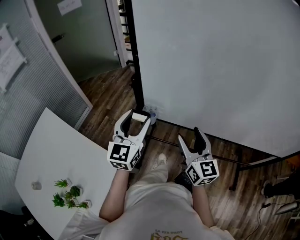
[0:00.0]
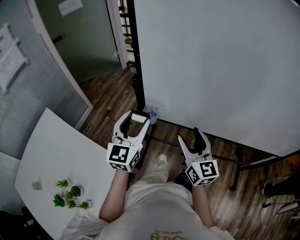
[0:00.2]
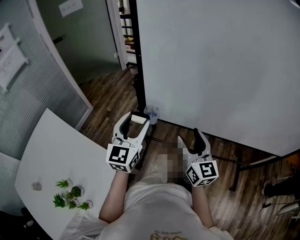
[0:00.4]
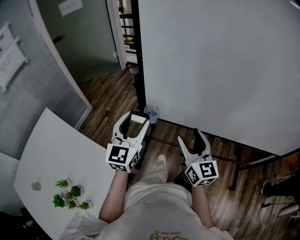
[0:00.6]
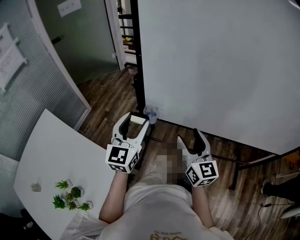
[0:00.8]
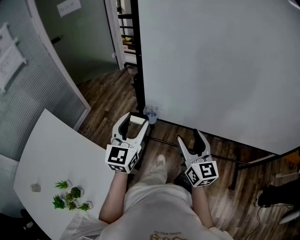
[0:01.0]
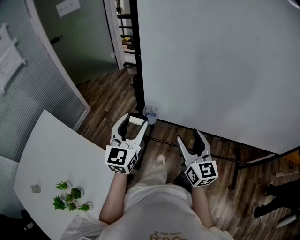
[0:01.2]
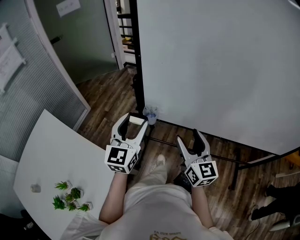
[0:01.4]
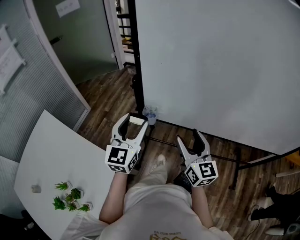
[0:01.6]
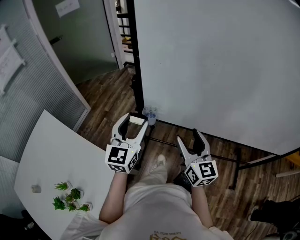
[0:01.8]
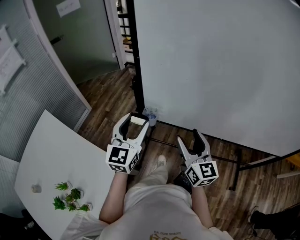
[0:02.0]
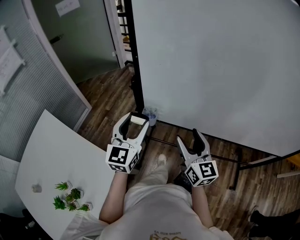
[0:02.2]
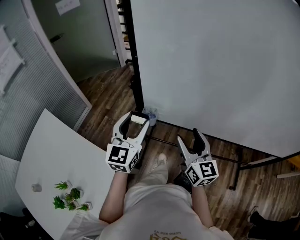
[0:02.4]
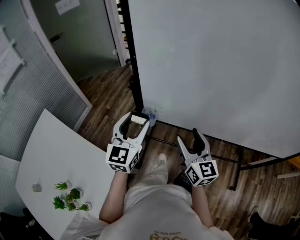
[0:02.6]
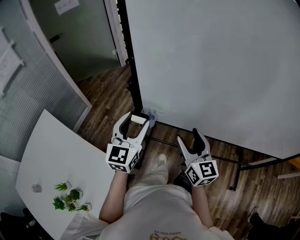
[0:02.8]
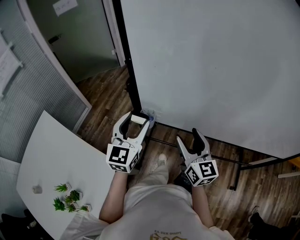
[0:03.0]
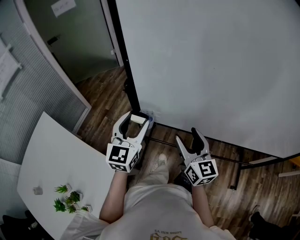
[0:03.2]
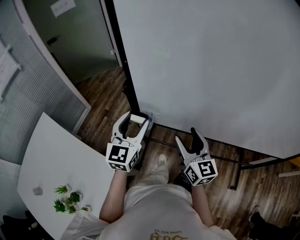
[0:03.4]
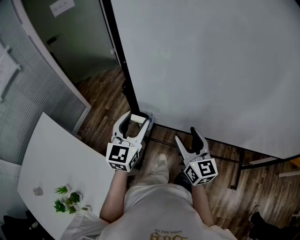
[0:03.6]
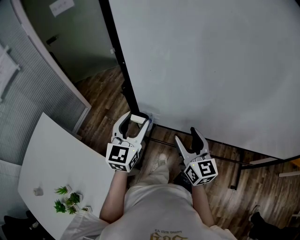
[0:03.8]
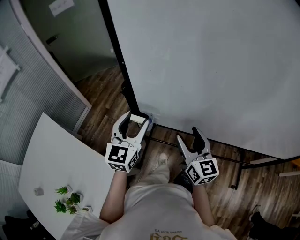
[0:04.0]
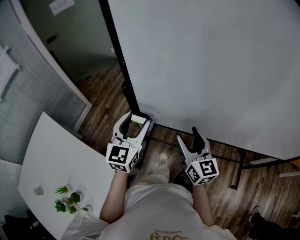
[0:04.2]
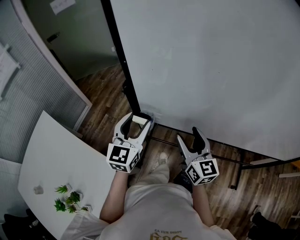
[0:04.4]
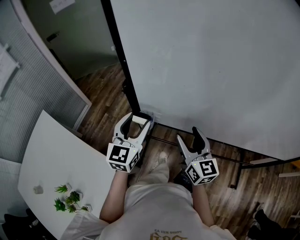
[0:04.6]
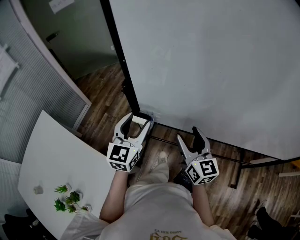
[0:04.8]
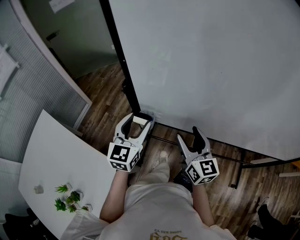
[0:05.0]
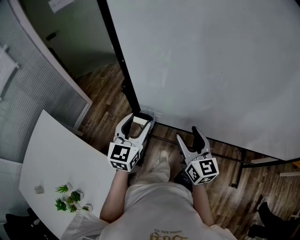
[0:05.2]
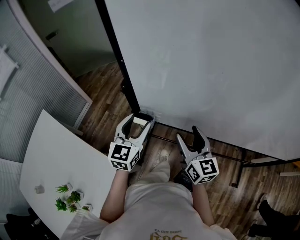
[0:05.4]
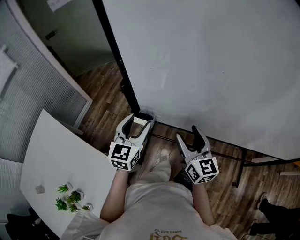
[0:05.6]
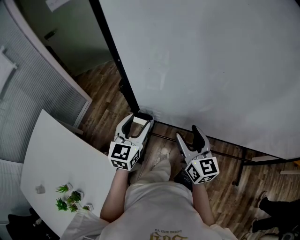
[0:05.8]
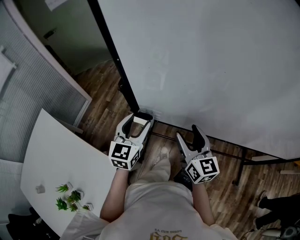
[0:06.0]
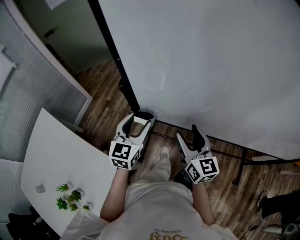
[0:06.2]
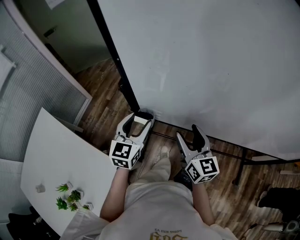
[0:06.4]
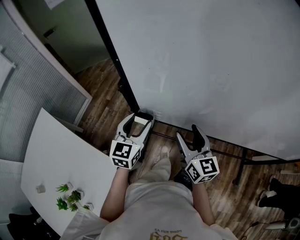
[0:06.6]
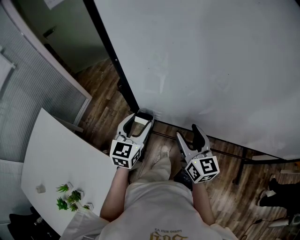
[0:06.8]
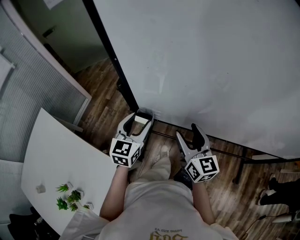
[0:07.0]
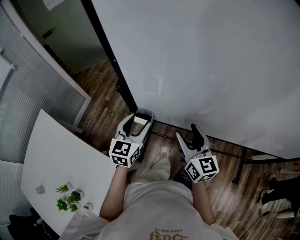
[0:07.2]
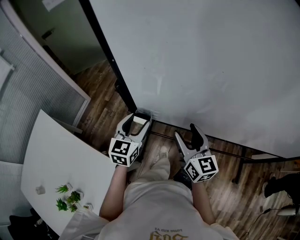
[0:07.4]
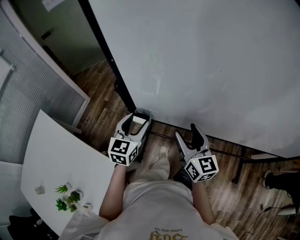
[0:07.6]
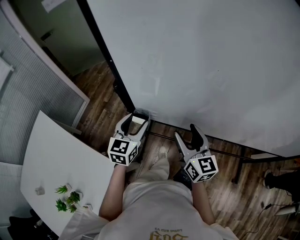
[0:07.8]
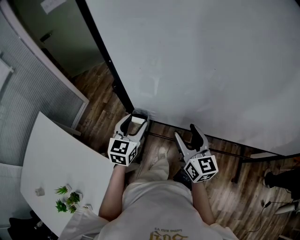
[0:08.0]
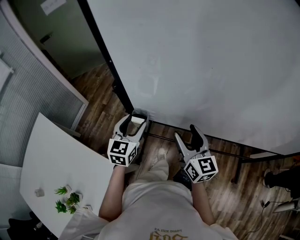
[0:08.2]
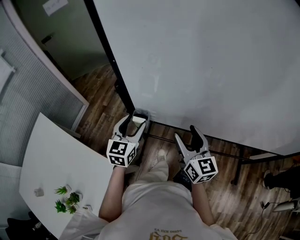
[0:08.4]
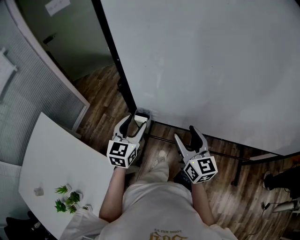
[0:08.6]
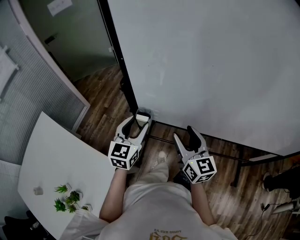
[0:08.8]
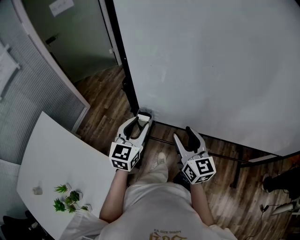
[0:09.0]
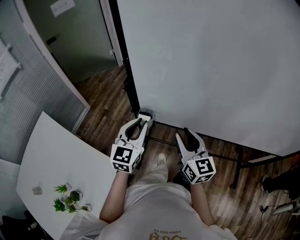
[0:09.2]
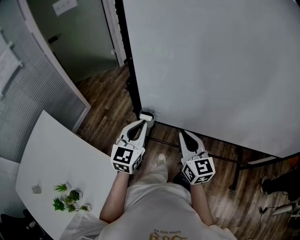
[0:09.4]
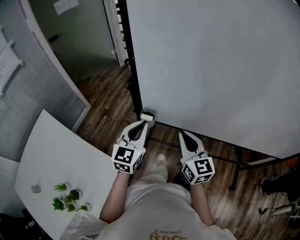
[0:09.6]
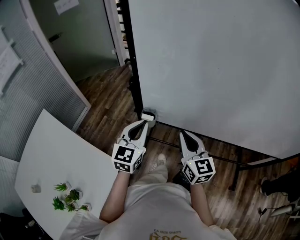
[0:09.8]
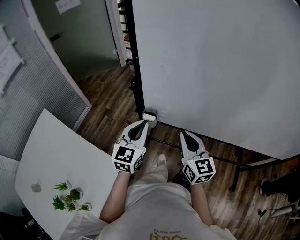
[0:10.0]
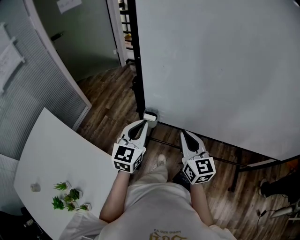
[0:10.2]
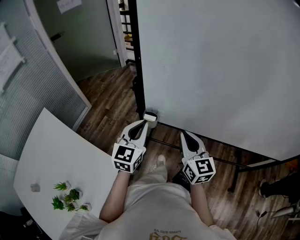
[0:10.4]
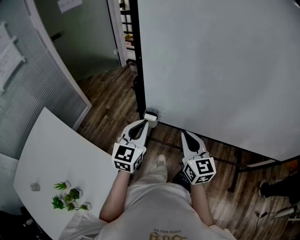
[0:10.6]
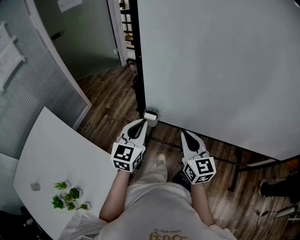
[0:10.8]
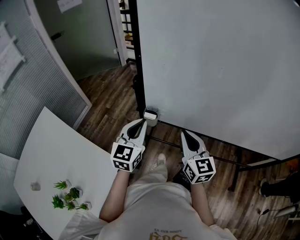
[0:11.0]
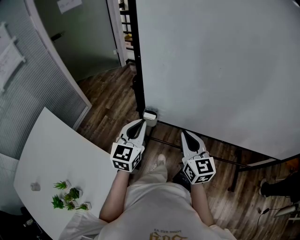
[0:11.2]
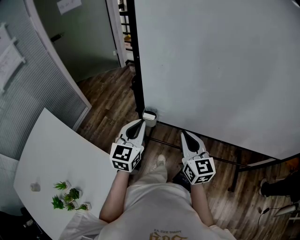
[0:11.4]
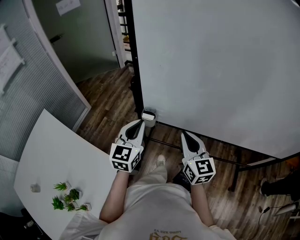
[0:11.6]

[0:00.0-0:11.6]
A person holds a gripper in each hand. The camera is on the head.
0:00.0 to 0:02.8: The grippers move only a little.
0:02.8 to 0:04.4: The grippers move only a little.
0:04.4 to 0:05.8: The left gripper changes place by roughly 5 cm.
0:05.8 to 0:08.8: The grippers stay close to where they were, moving slightly.
0:08.8 to 0:10.2: The left gripper closes. Meanwhile the right gripper closes up.
0:10.2 to 0:11.6: Neither gripper changes place.

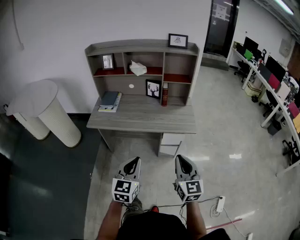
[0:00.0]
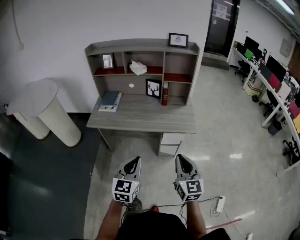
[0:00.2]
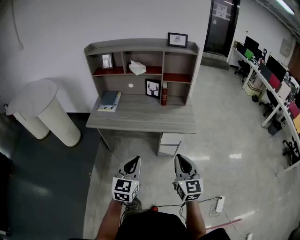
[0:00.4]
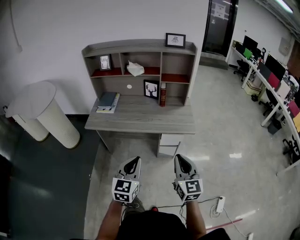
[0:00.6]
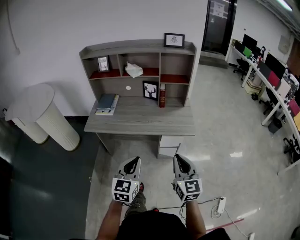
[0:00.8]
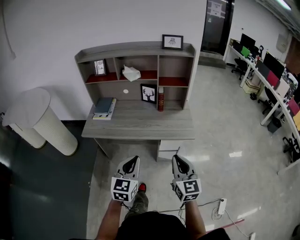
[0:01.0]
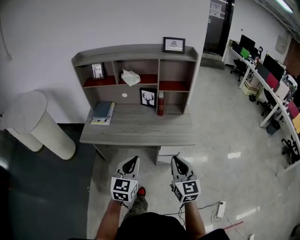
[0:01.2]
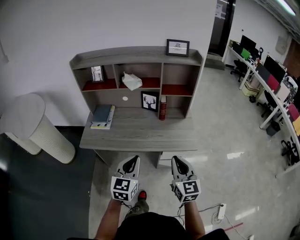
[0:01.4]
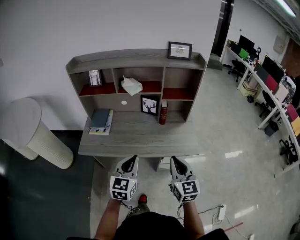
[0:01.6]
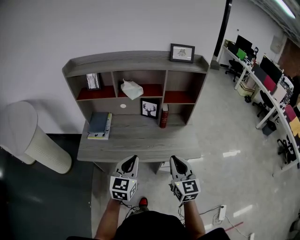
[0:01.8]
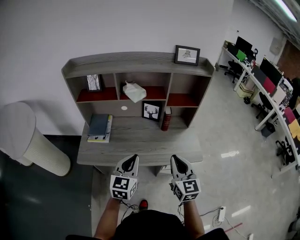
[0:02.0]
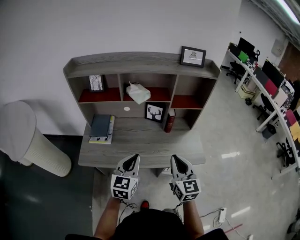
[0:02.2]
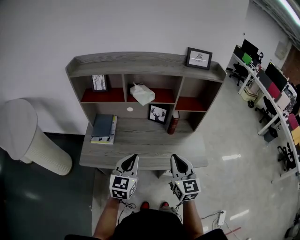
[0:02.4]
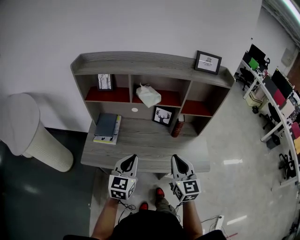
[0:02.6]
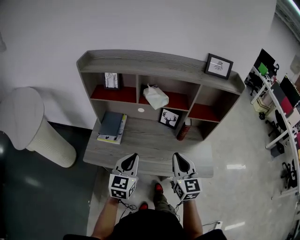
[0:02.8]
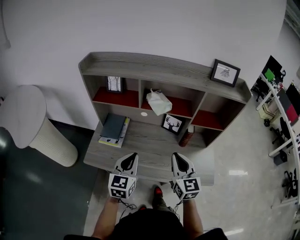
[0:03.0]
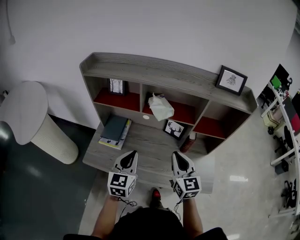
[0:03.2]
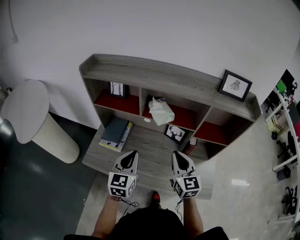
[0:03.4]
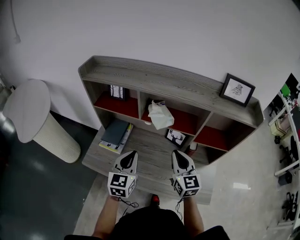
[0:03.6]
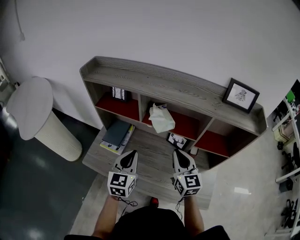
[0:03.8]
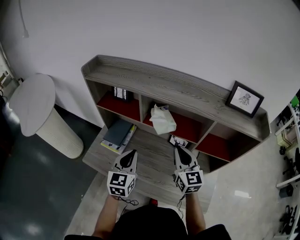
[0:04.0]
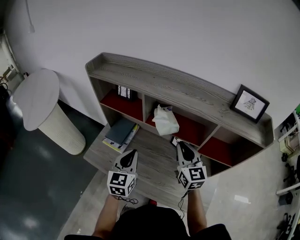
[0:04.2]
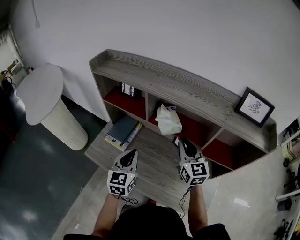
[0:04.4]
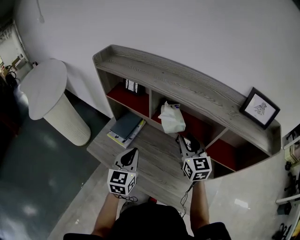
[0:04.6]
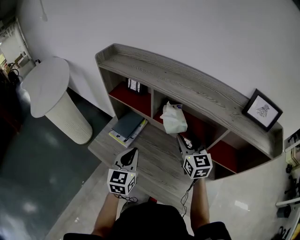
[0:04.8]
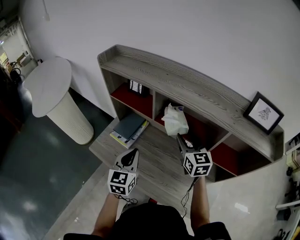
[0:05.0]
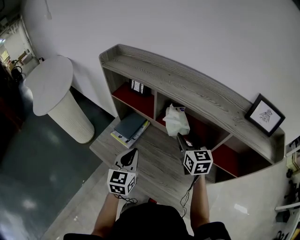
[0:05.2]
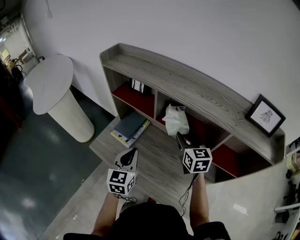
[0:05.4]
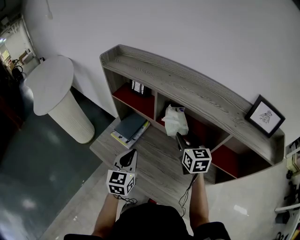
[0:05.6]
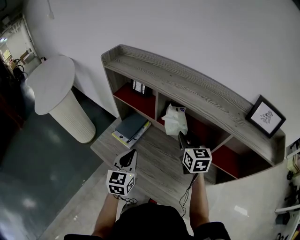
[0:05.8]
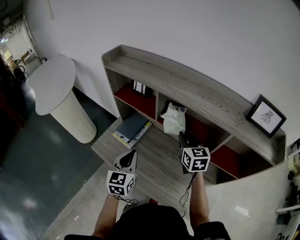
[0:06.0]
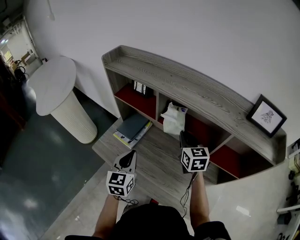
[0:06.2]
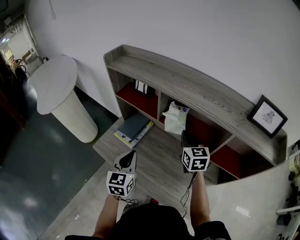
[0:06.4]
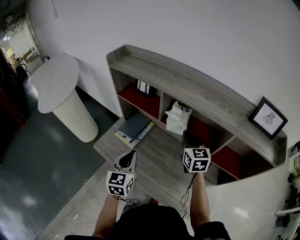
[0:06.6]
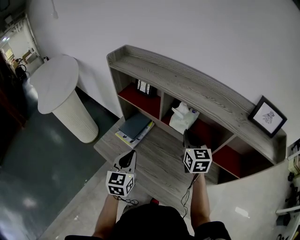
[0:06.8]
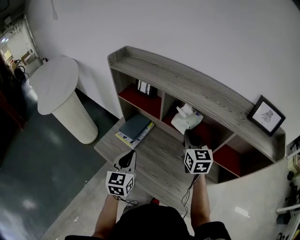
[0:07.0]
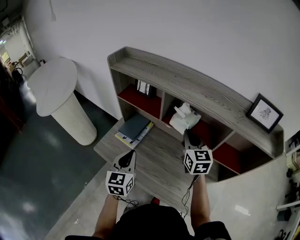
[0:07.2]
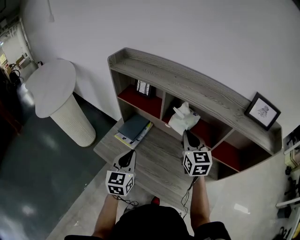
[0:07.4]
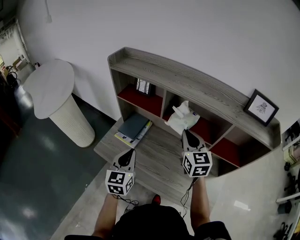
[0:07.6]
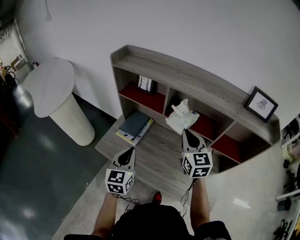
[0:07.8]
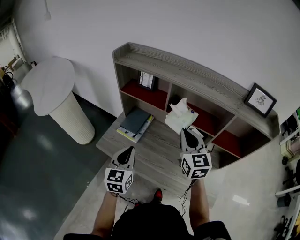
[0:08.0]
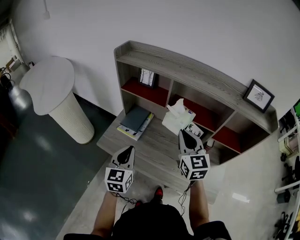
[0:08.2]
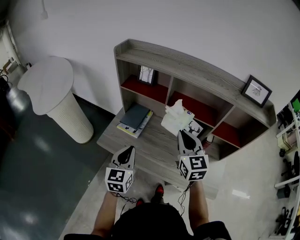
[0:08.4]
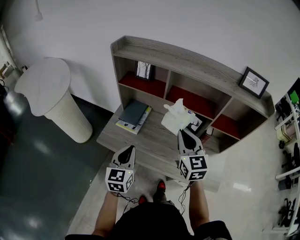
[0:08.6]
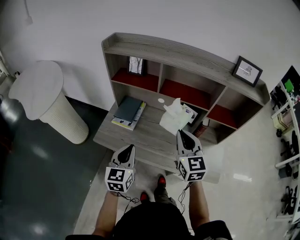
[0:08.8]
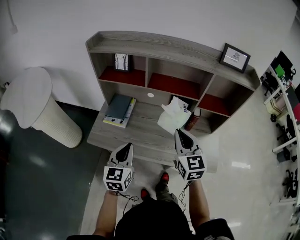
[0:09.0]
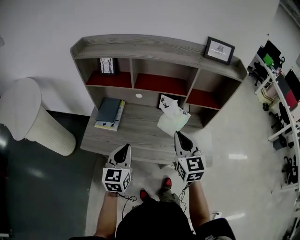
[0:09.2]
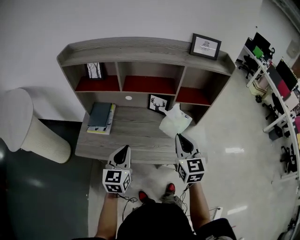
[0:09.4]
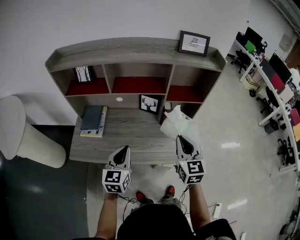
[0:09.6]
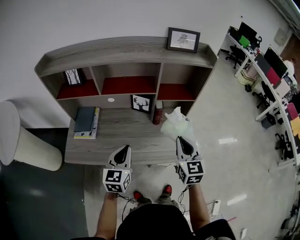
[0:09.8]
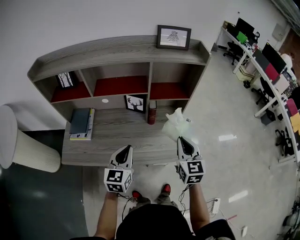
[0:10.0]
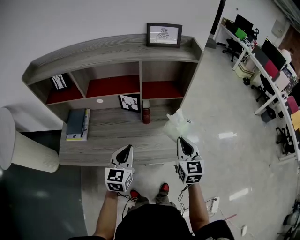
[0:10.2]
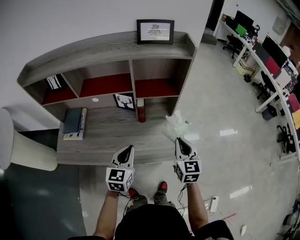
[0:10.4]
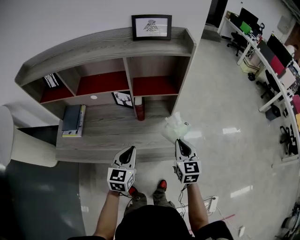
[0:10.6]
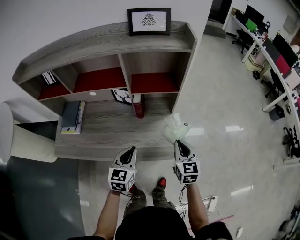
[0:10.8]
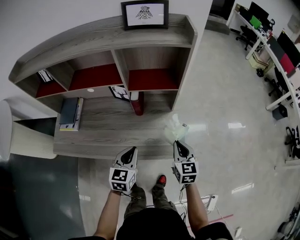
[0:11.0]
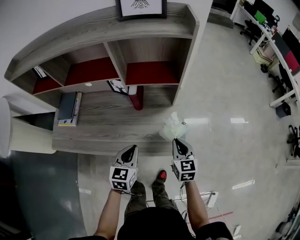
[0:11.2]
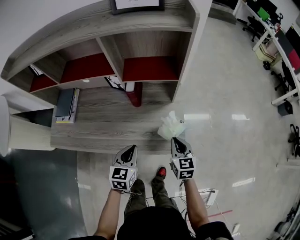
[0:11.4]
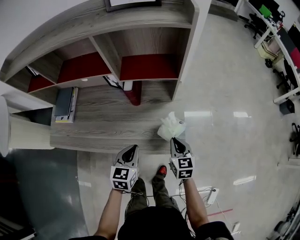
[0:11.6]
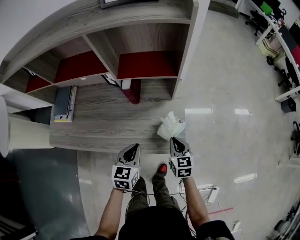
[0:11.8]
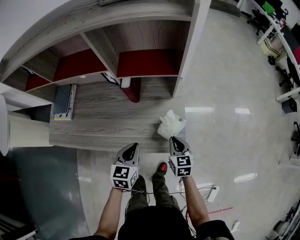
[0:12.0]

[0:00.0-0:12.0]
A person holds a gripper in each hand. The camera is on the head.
0:00.0 to 0:01.6: Both grippers travel together forward, some 25 cm.
0:01.6 to 0:03.0: Both grippers move forward and to the left, roughly 25 cm.
0:03.0 to 0:04.4: The left gripper is displaced forward by roughly 10 cm, and swivels approximately 20 degrees. The right gripper heads forward, covering about 20 cm.
0:04.4 to 0:06.0: The right gripper moves forward, roughly 5 cm, and opens, then closes again.
0:06.0 to 0:07.6: The right gripper shifts some 10 cm upward and backward. Meanwhile the left gripper ends up roughly 5 cm from where it was.
0:07.6 to 0:09.0: The right gripper is displaced backward by roughly 20 cm. The left gripper travels backward by about 10 cm.
0:09.0 to 0:10.4: Both grippers move to the right, about 30 cm. The right gripper rotates about 20 degrees; the left gripper swivels about 20 degrees.
0:10.4 to 0:12.0: The left gripper is displaced downward and to the right by about 15 cm. The right gripper heads downward, covering roughly 25 cm, and rotates about 20 degrees.
